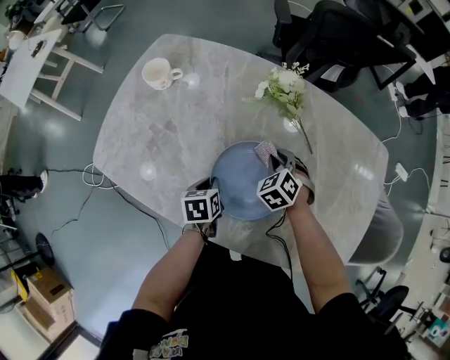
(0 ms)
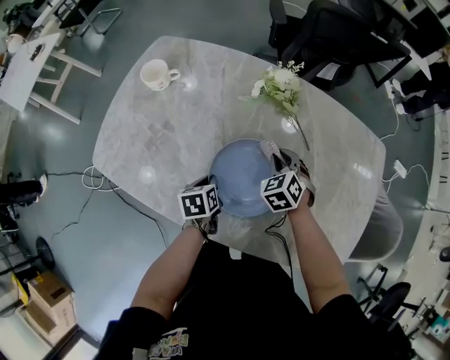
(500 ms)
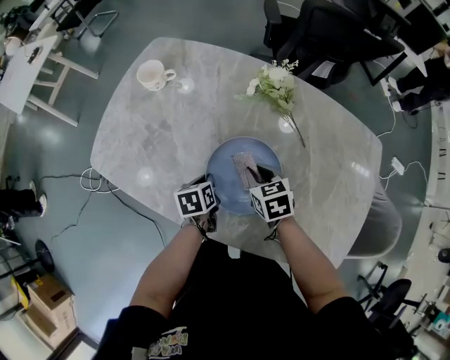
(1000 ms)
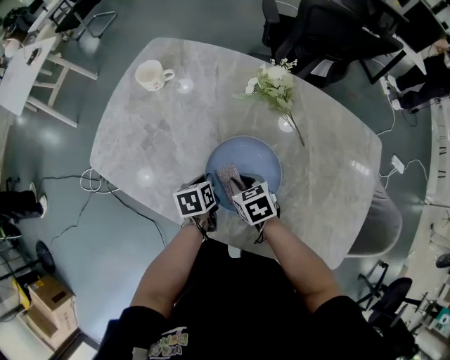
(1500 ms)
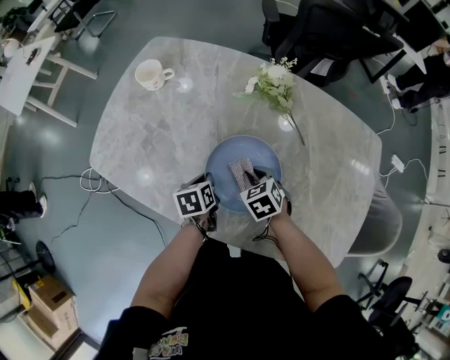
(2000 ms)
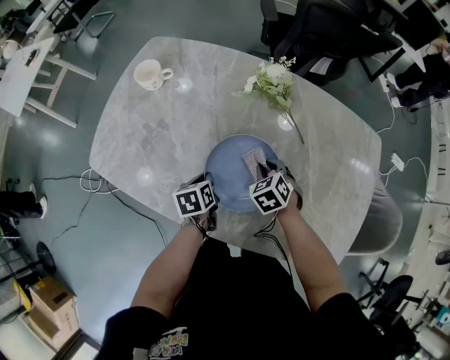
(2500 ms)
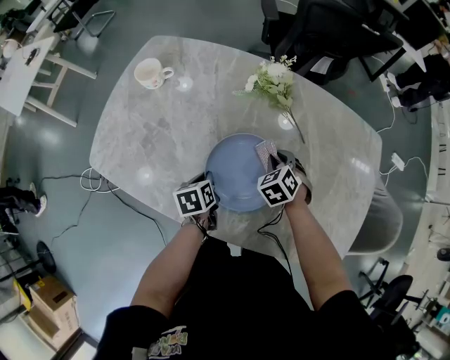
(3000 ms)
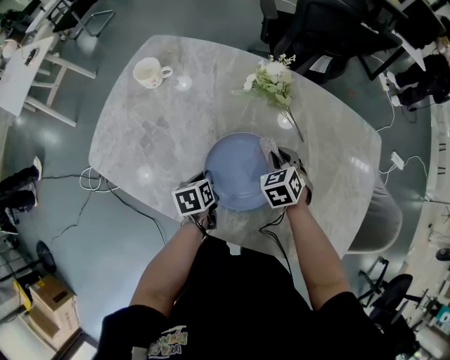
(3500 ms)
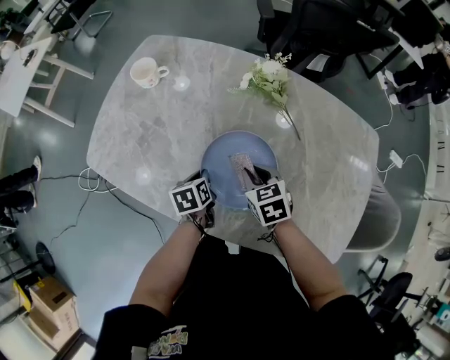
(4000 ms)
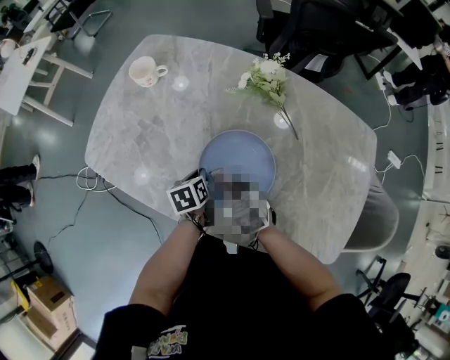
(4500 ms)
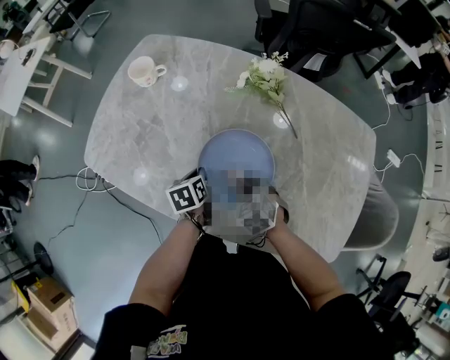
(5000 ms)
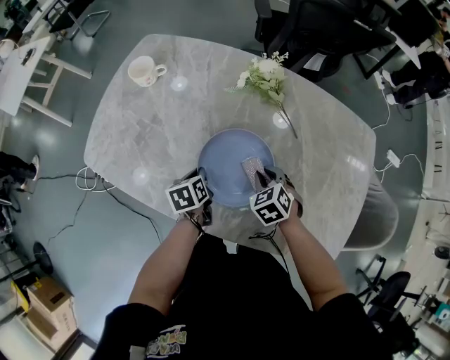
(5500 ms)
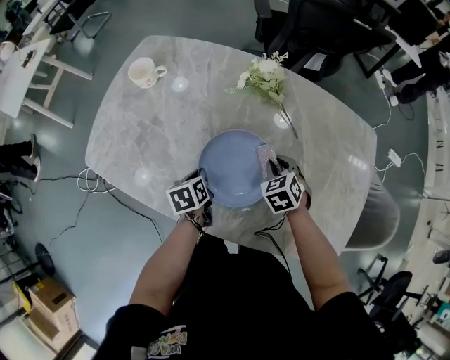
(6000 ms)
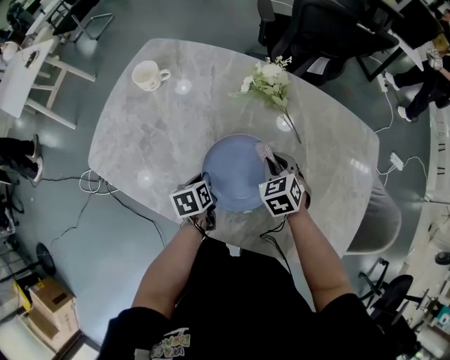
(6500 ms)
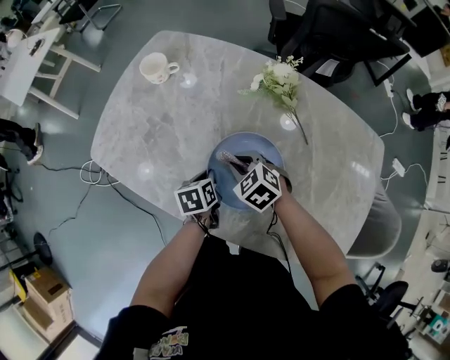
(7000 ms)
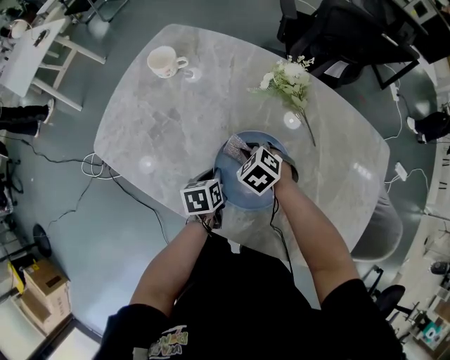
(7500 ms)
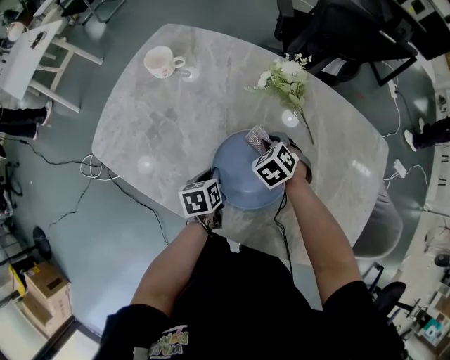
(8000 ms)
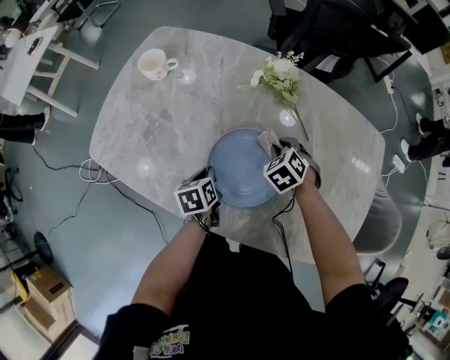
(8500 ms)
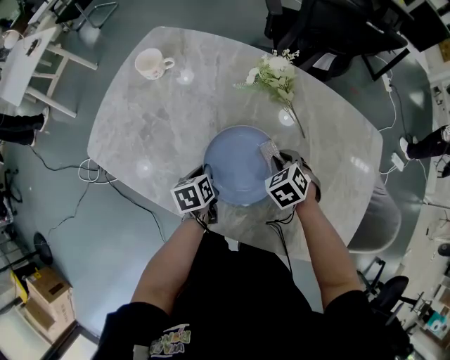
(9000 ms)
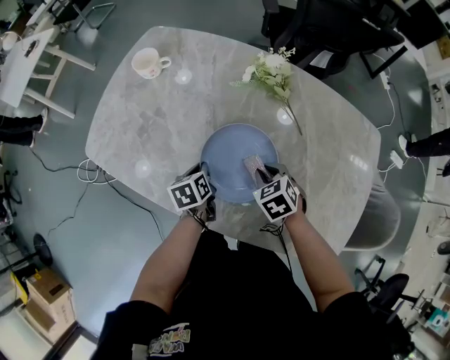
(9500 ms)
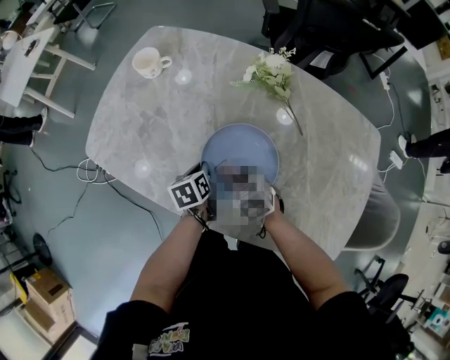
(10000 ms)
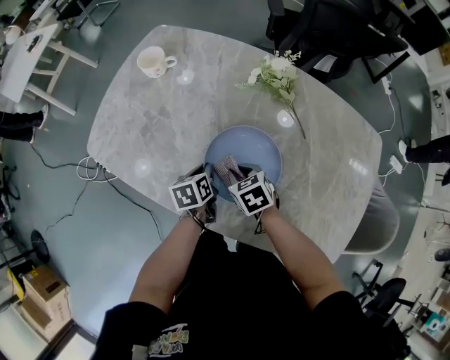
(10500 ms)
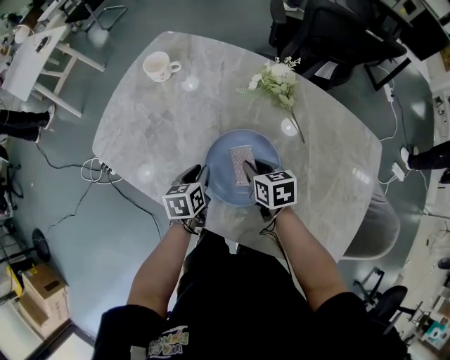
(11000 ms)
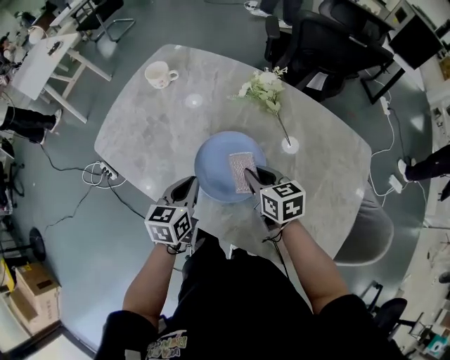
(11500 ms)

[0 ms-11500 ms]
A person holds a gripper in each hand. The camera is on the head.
0 ms to 2000 ms: The right gripper shifts approximately 10 cm backward, and swivels about 20 degrees.
2000 ms to 4000 ms: The right gripper travels upward by some 5 cm.
4000 ms to 6000 ms: The right gripper moves to the right, about 10 cm, and changes its angle by some 20 degrees.
6000 ms to 7500 ms: The right gripper heads to the left, covering roughly 15 cm, and turns by roughly 30 degrees.
7500 ms to 9500 ms: The right gripper shifts roughly 15 cm to the right and backward, and rotates roughly 20 degrees.
9500 ms to 11500 ms: The left gripper heads upward and backward, covering roughly 15 cm, and turns by some 30 degrees. The right gripper goes about 10 cm upward, and turns by roughly 40 degrees.

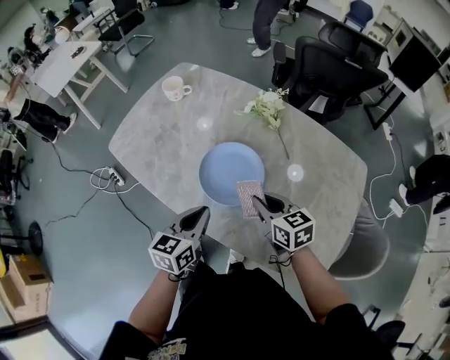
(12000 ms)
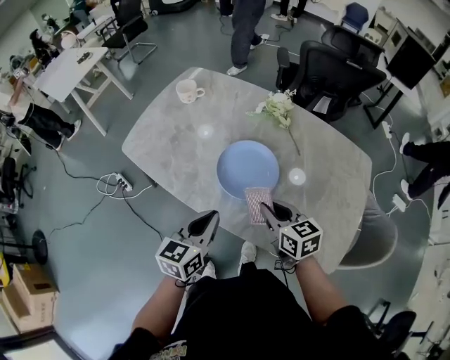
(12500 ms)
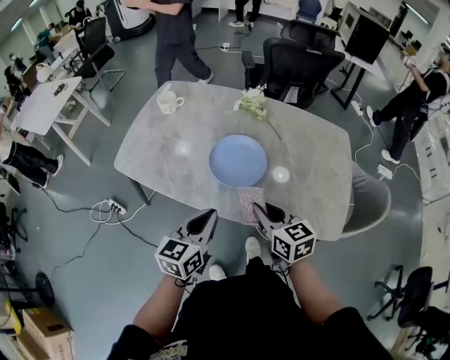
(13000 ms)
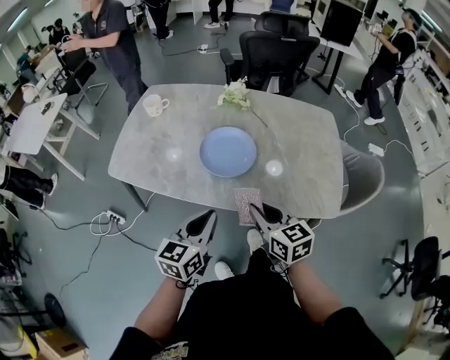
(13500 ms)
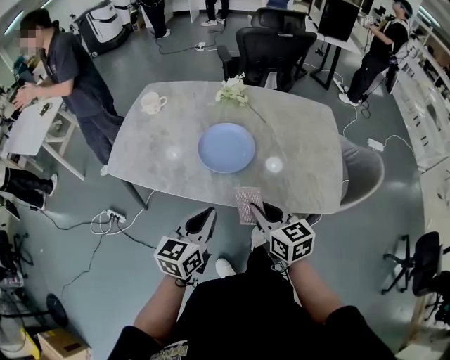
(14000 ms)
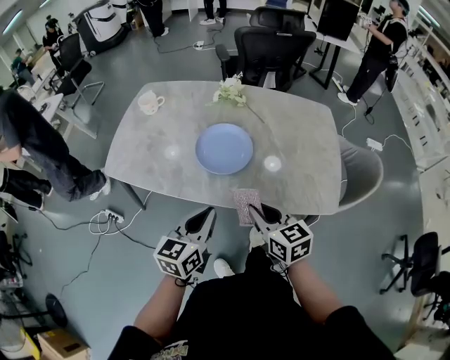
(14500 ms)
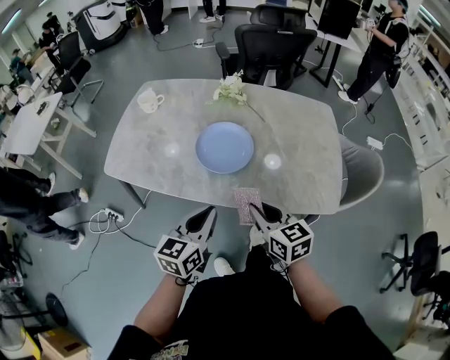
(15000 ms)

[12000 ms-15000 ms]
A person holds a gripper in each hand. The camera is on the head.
12000 ms to 13500 ms: The two grippers go roughly 20 cm backward and to the left. The left gripper rotates approximately 20 degrees. The right gripper changes its angle by some 20 degrees.
13500 ms to 15000 ms: The grippers make only small movements.

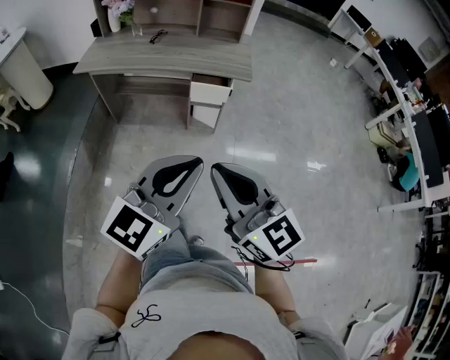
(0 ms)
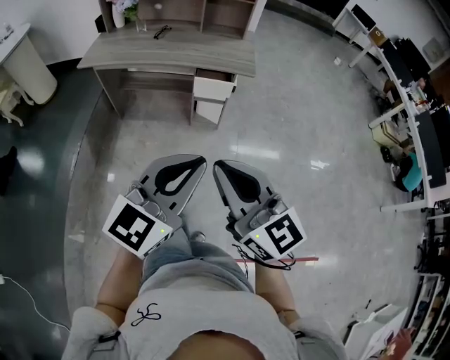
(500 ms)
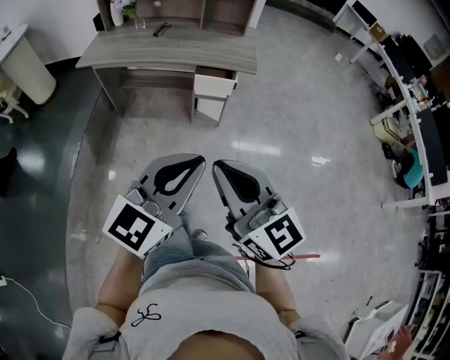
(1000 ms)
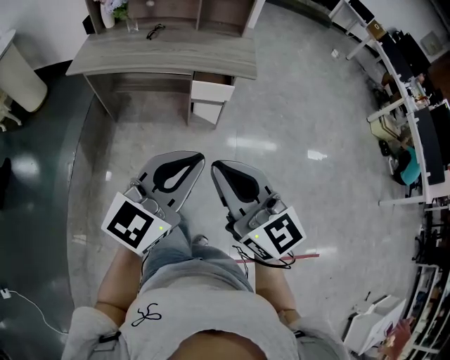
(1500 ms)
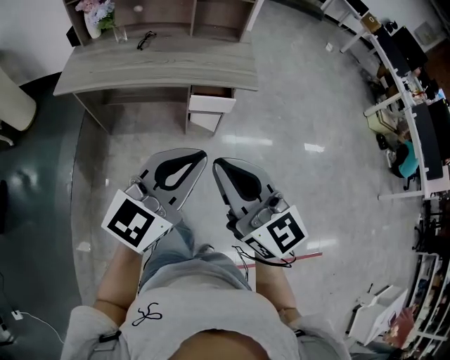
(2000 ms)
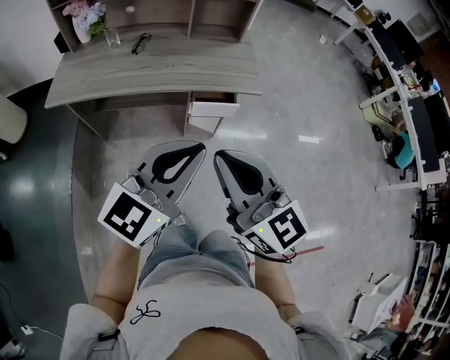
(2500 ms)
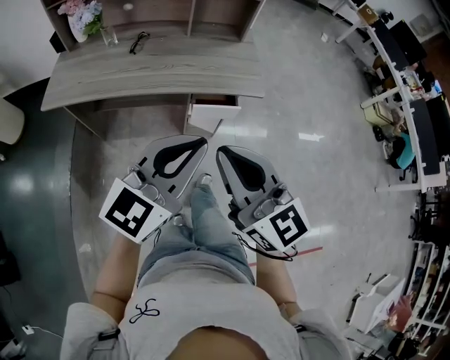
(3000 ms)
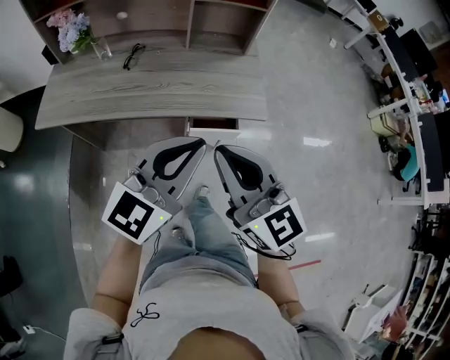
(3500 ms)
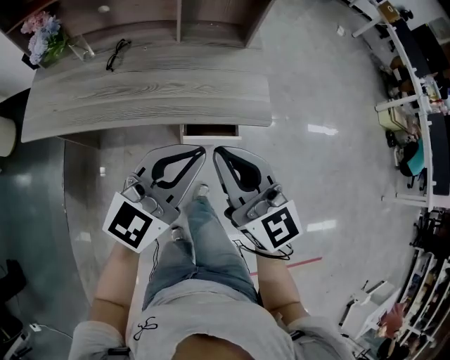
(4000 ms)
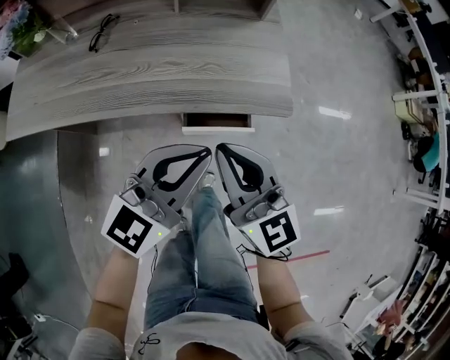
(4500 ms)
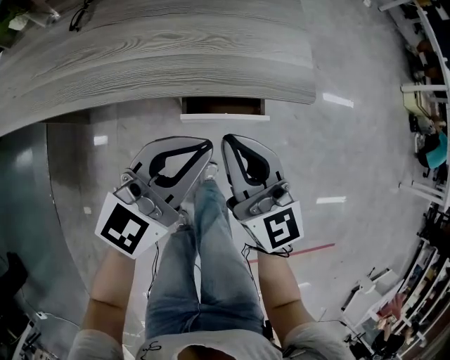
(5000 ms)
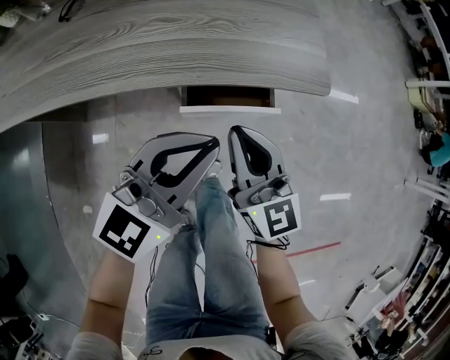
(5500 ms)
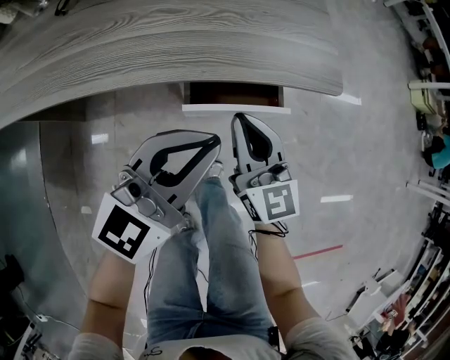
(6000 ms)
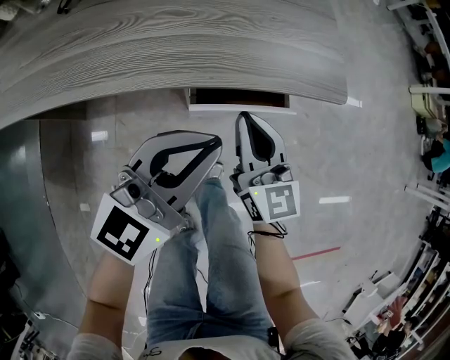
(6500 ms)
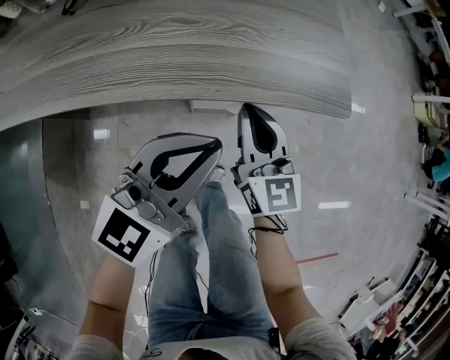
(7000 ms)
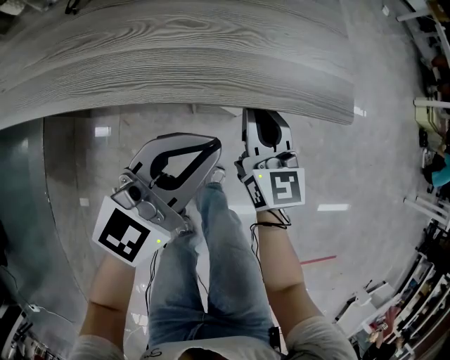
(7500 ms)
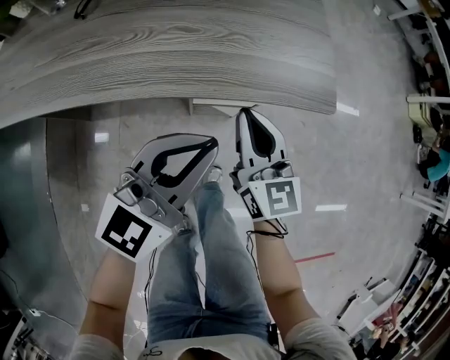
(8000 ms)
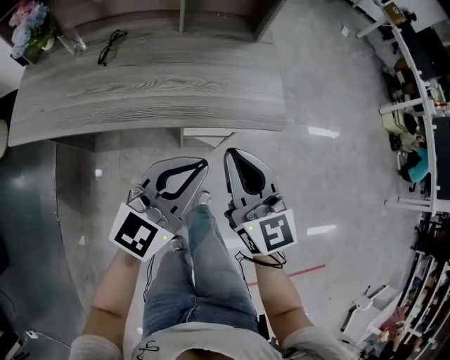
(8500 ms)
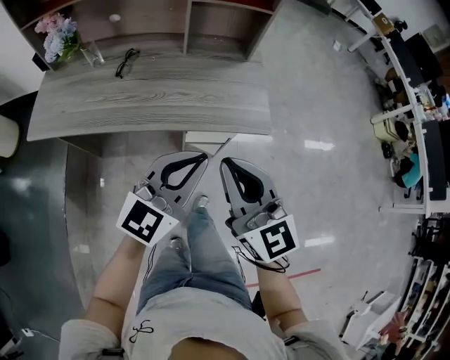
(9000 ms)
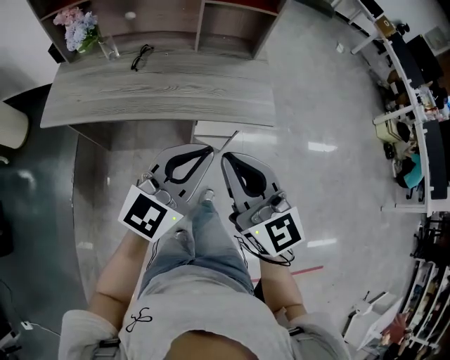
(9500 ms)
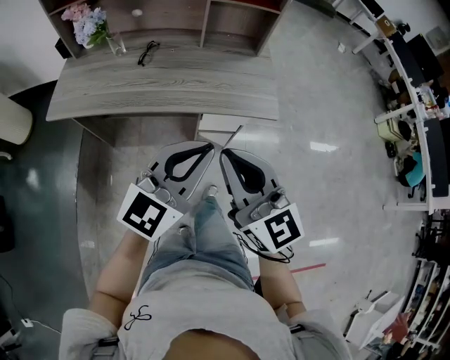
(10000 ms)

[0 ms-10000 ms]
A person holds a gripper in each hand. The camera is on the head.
0 ms to 2000 ms: Both grippers travel together forward, roughly 15 cm.
2000 ms to 4000 ms: Both grippers move forward, about 30 cm.
4000 ms to 6000 ms: The two grippers go roughly 25 cm downward.
6000 ms to 8000 ms: There are only small adjustments of the grippers.
8000 ms to 10000 ms: Both grippers move upward and backward, approximately 35 cm. The right gripper changes its angle by approximately 20 degrees.

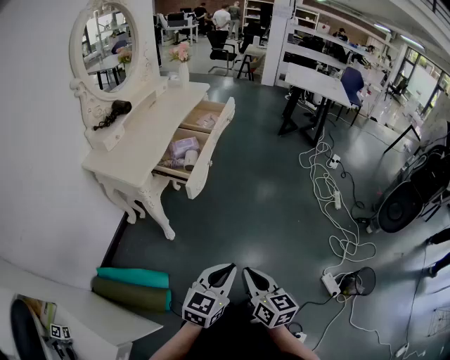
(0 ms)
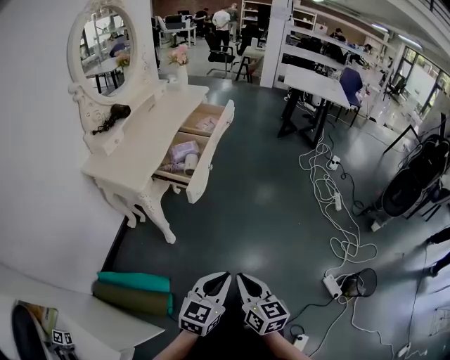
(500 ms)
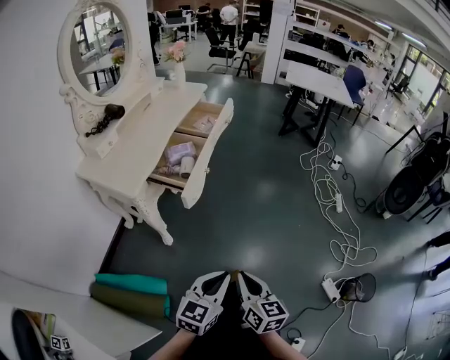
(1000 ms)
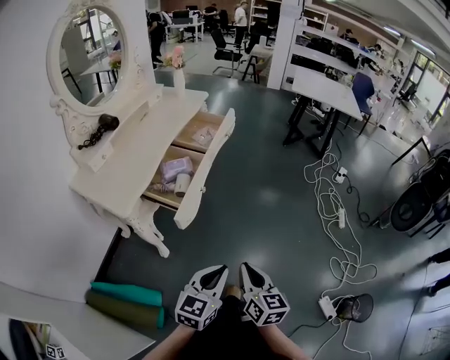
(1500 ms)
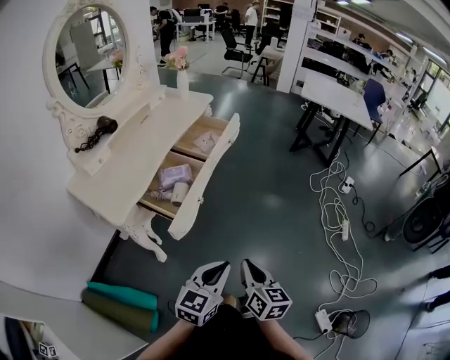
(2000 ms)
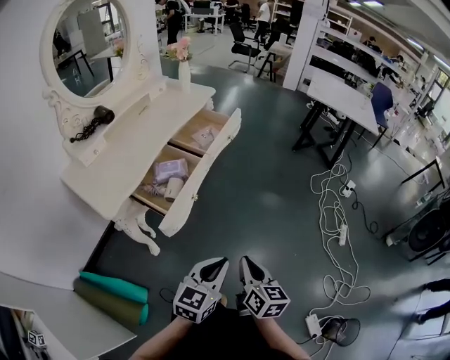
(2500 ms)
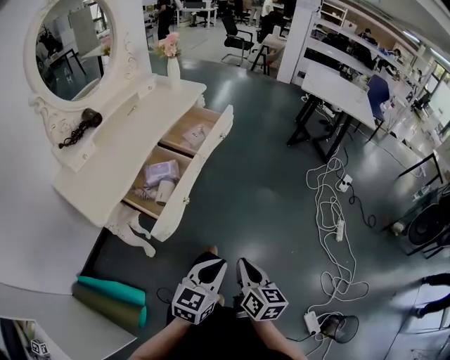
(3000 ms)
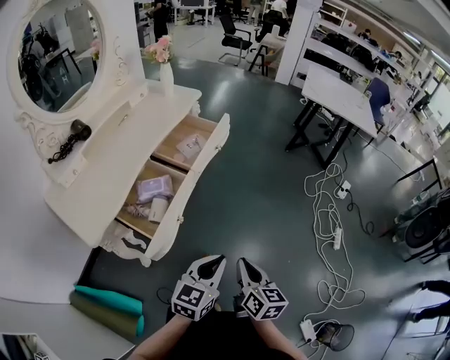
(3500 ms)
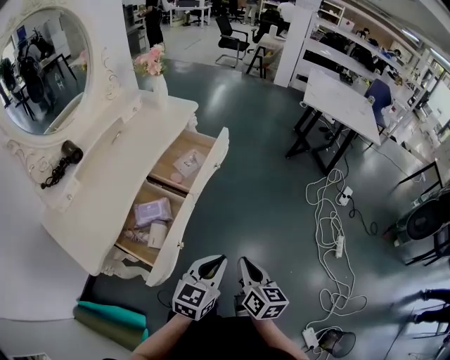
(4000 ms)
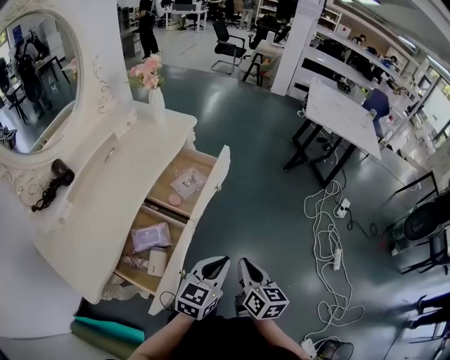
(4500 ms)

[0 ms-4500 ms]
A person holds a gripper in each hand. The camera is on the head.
0 ms to 2000 ms: The grippers both shift forward by approximately 25 cm.
2000 ms to 4500 ms: Both grippers move forward, some 35 cm.
